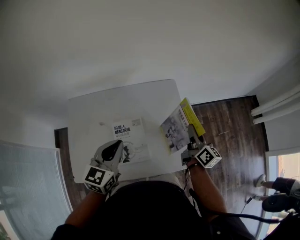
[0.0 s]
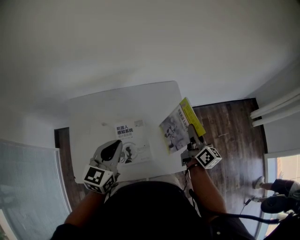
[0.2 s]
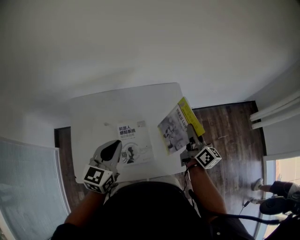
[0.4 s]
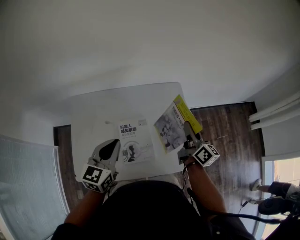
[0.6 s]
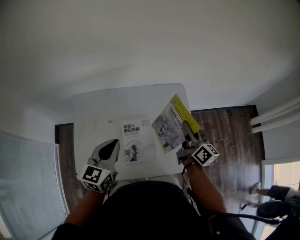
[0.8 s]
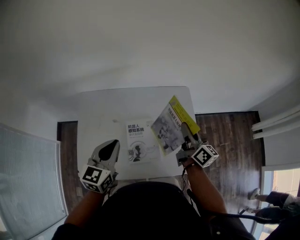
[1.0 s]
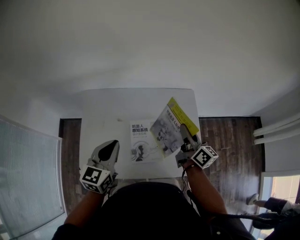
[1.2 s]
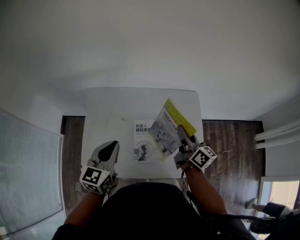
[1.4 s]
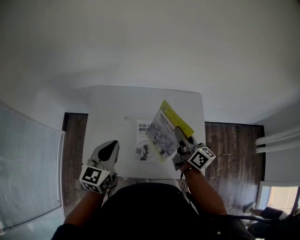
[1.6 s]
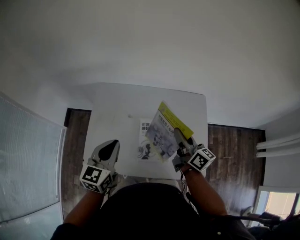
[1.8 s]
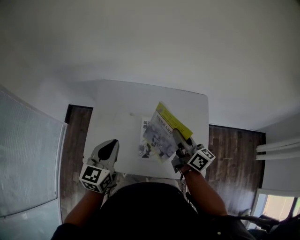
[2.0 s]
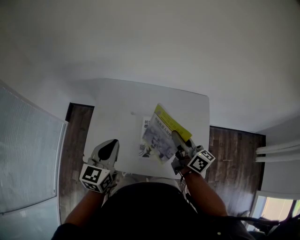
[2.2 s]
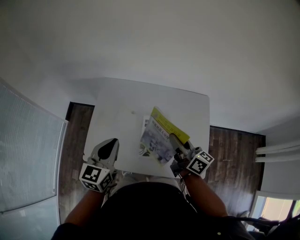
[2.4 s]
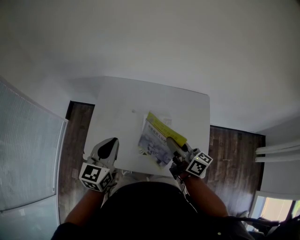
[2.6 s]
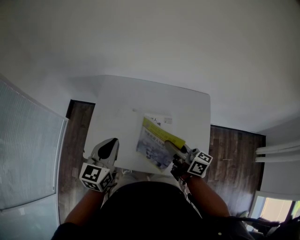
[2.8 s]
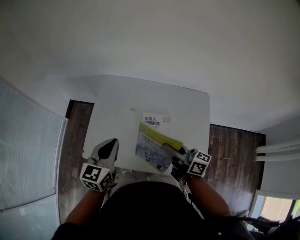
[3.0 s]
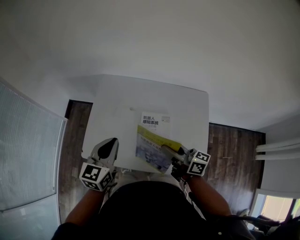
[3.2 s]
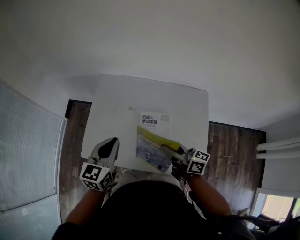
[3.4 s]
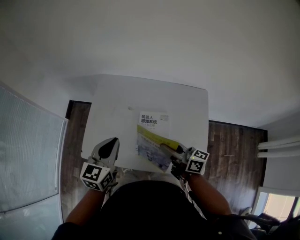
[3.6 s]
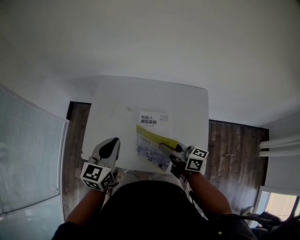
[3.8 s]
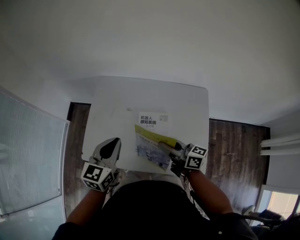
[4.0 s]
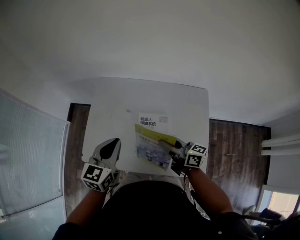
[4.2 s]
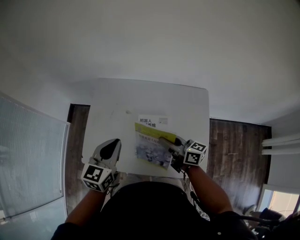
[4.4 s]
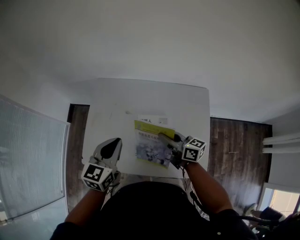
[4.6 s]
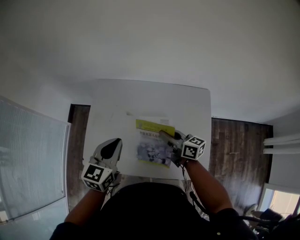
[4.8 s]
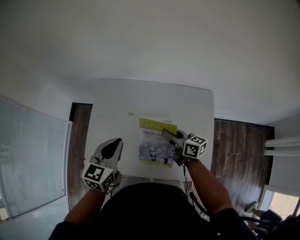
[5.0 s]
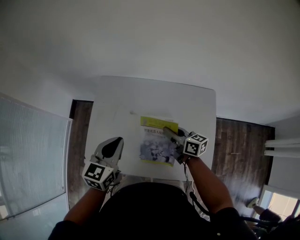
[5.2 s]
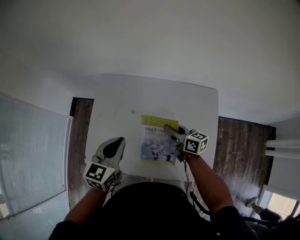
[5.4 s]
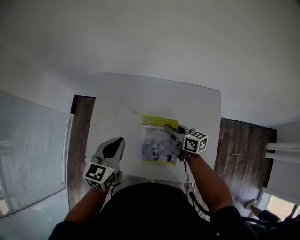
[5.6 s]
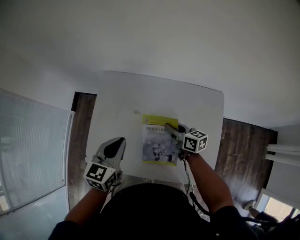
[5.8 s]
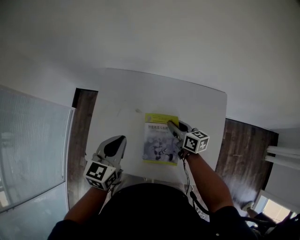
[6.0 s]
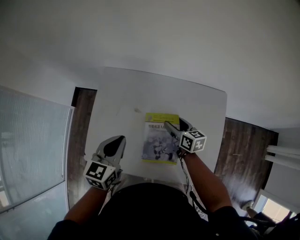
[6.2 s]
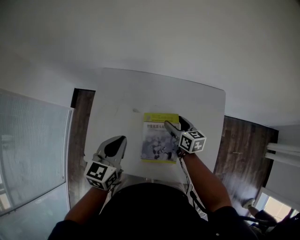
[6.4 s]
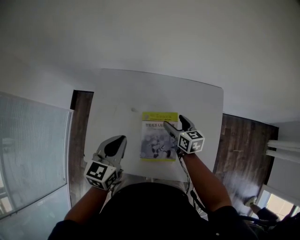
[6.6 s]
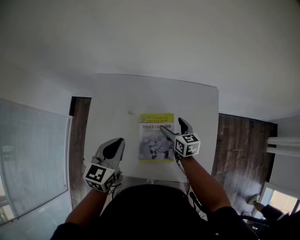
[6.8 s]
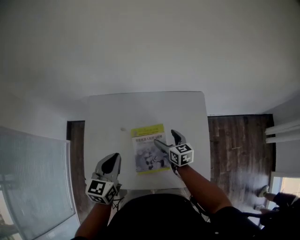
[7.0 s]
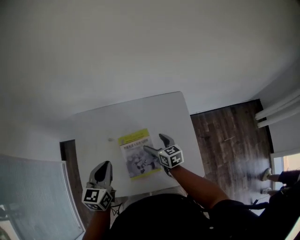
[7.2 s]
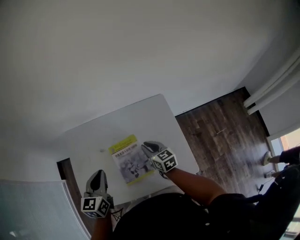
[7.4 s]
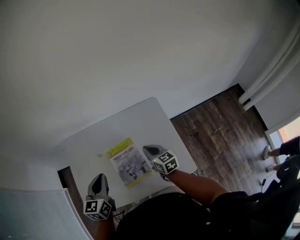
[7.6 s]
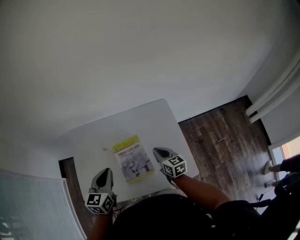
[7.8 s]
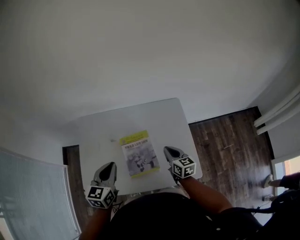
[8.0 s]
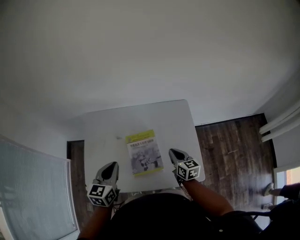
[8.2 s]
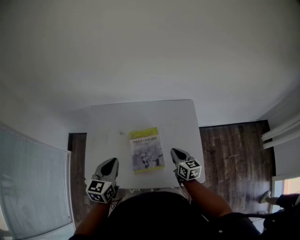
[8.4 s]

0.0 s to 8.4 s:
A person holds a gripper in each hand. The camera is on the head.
0.0 to 1.4 s: Both grippers travel together to the left, some 15 cm. The right gripper changes its angle by roughly 20 degrees.
1.4 to 2.8 s: The left gripper moves roughly 5 cm; the right gripper moves to the left and backward, approximately 15 cm, and swivels about 30 degrees.
2.8 to 4.2 s: The grippers stay close to where they were, moving slightly.
4.2 to 5.6 s: The right gripper heads forward and downward, covering about 15 cm. Meanwhile the left gripper ends up about 5 cm from where it was.
5.6 to 7.0 s: The right gripper shifts by some 5 cm, turns by roughly 30 degrees, and opens up.
7.0 to 8.4 s: The right gripper moves backward and to the right, about 10 cm, and closes.

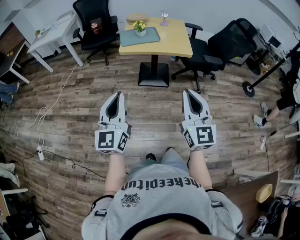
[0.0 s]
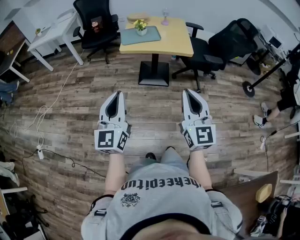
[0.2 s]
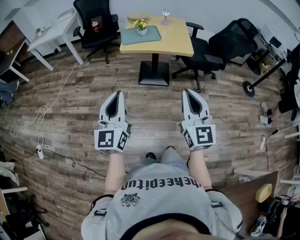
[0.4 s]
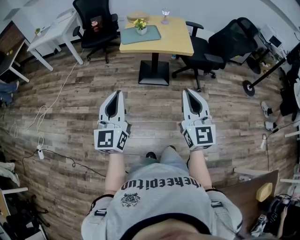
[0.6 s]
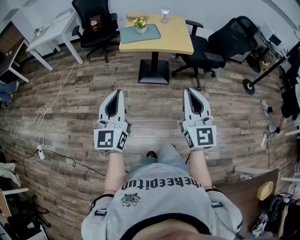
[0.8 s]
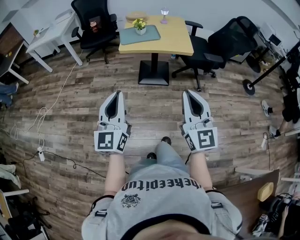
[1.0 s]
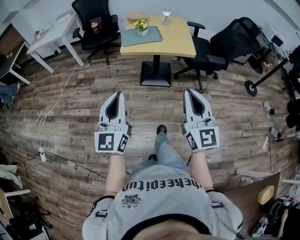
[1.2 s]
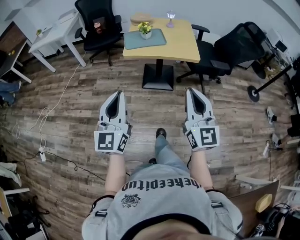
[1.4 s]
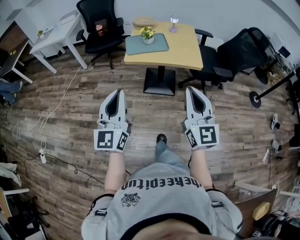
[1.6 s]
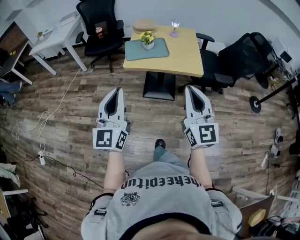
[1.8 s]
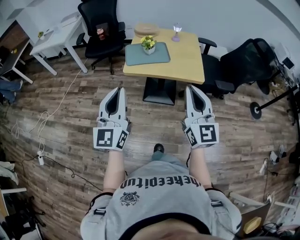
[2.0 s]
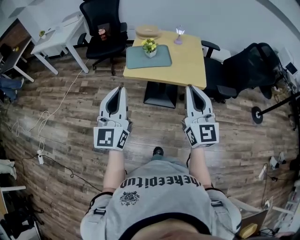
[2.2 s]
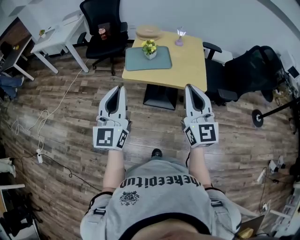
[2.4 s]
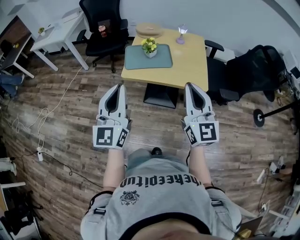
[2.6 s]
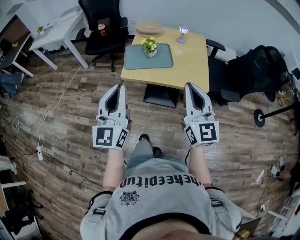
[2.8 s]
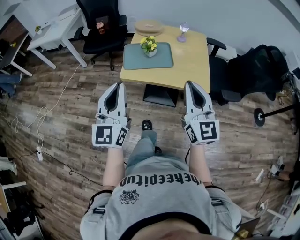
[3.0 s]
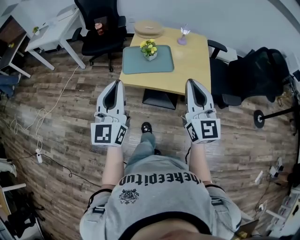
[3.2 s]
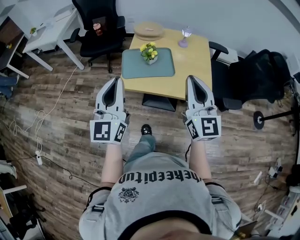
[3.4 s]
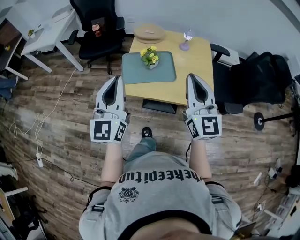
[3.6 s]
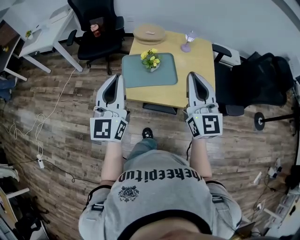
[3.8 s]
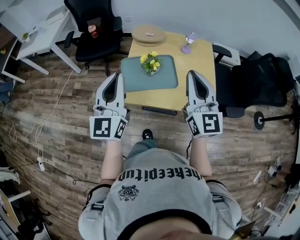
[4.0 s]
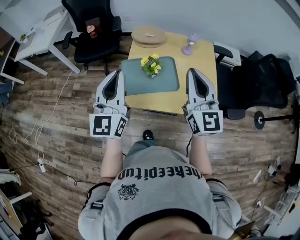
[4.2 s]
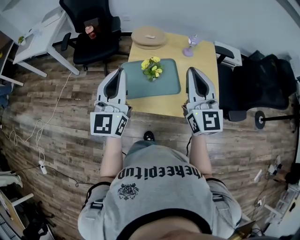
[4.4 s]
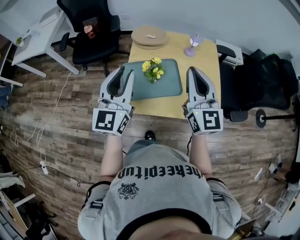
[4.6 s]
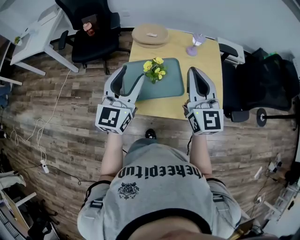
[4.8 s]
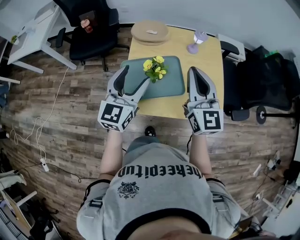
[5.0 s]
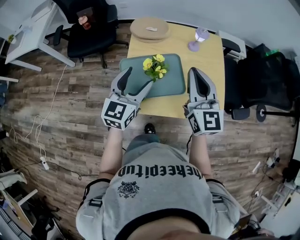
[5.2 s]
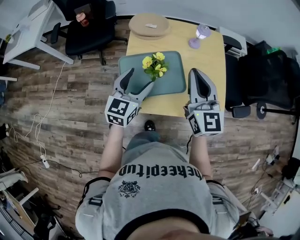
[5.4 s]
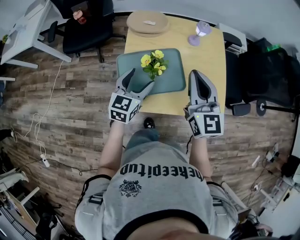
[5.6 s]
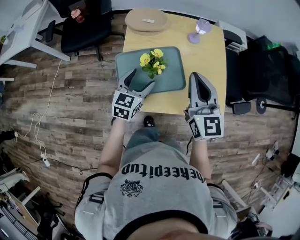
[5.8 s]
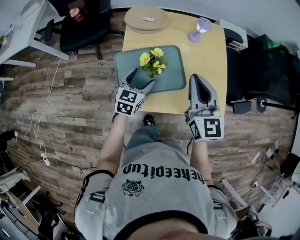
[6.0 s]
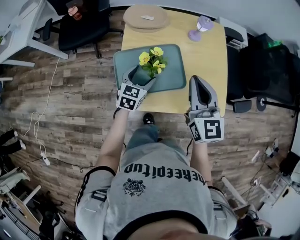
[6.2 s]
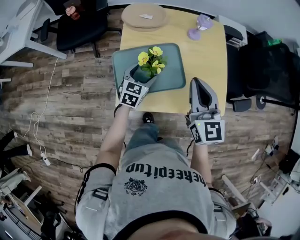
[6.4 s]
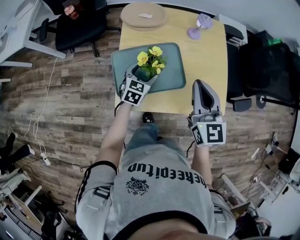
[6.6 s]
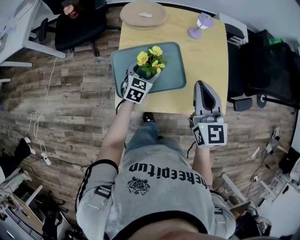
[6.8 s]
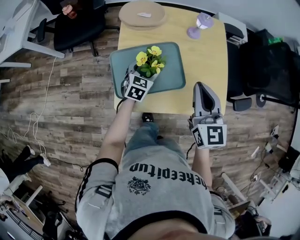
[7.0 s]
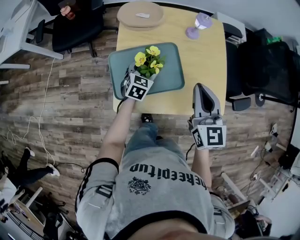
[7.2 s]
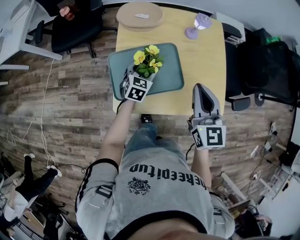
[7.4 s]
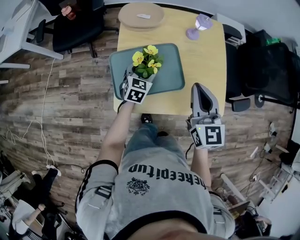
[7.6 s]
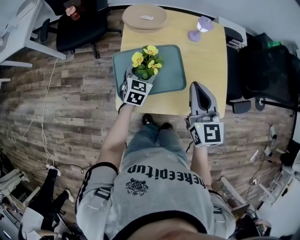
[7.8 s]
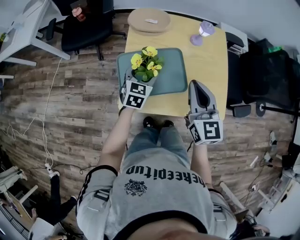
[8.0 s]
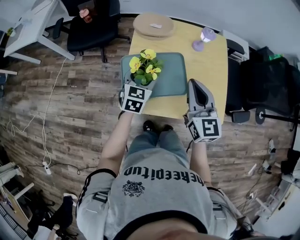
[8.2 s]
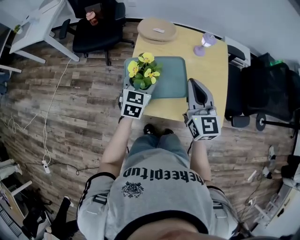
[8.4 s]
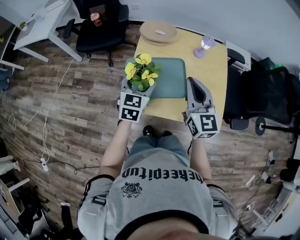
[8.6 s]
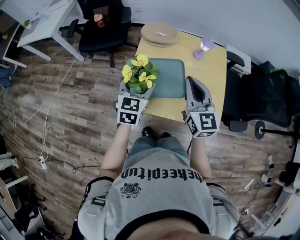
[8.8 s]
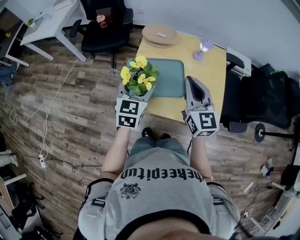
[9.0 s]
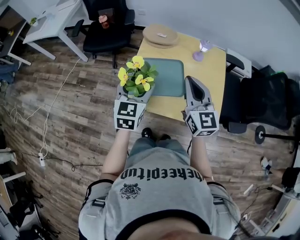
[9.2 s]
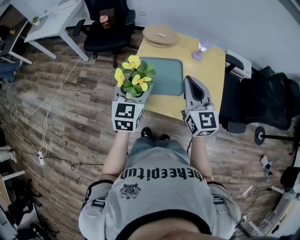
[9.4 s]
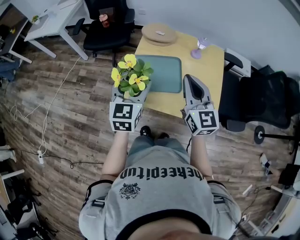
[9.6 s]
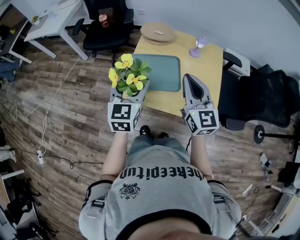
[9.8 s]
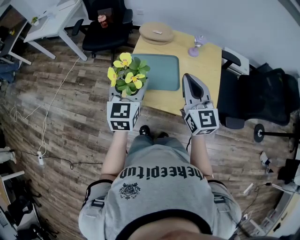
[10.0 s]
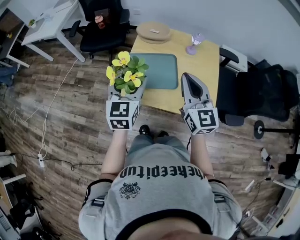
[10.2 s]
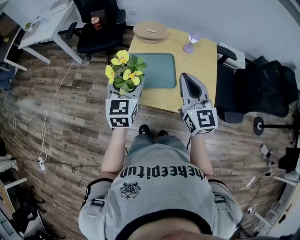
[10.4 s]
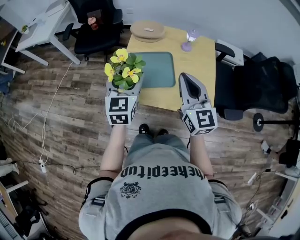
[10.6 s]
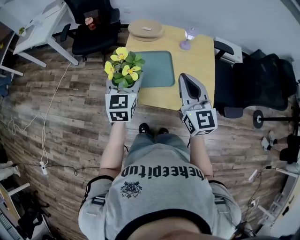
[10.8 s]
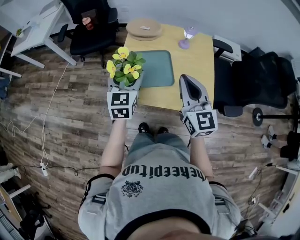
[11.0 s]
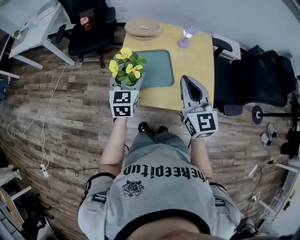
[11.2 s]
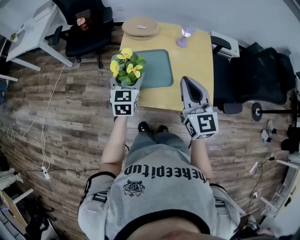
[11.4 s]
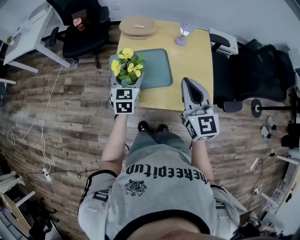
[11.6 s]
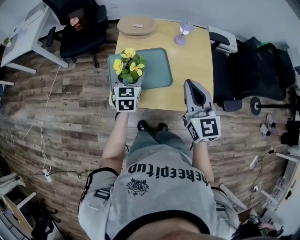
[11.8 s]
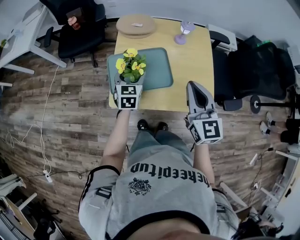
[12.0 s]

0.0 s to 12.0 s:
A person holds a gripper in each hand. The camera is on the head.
0.0 to 1.6 s: The two grippers go some 15 cm forward.
1.6 to 3.0 s: The two grippers go roughly 25 cm forward.
3.0 to 4.4 s: Both grippers travel together forward, about 30 cm.
4.4 to 6.0 s: The left gripper heads downward, covering approximately 30 cm, points its fingers some 40 degrees further downward, and opens. Meanwhile the right gripper is displaced downward and forward by roughly 15 cm.
6.0 to 7.6 s: The left gripper heads forward and downward, covering approximately 10 cm.
7.6 to 9.0 s: The left gripper moves upward and backward, approximately 25 cm, and turns by some 20 degrees; the right gripper shifts some 5 cm upward.
9.0 to 10.4 s: The right gripper is displaced backward by roughly 5 cm. The left gripper heads upward and backward, covering roughly 5 cm.
10.4 to 12.0 s: The right gripper changes place by roughly 5 cm. The left gripper shifts some 20 cm downward and forward.

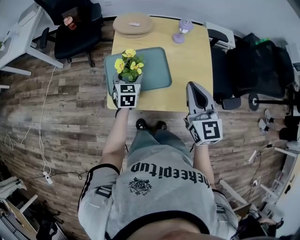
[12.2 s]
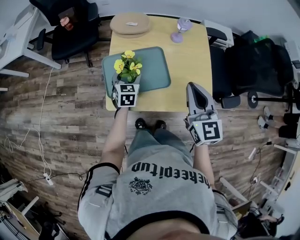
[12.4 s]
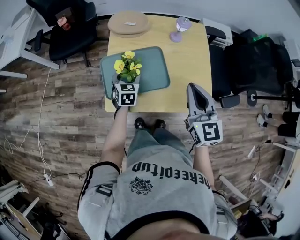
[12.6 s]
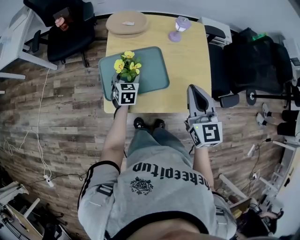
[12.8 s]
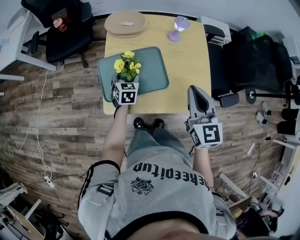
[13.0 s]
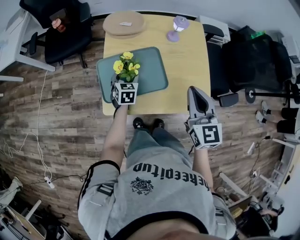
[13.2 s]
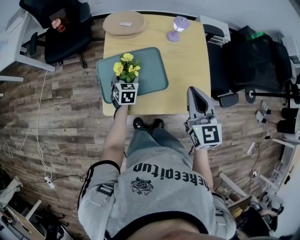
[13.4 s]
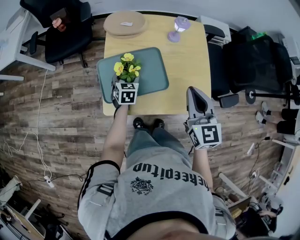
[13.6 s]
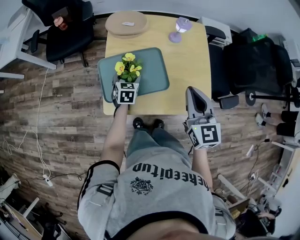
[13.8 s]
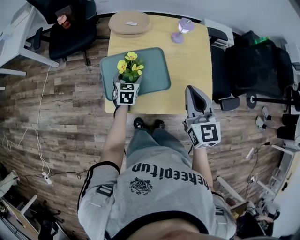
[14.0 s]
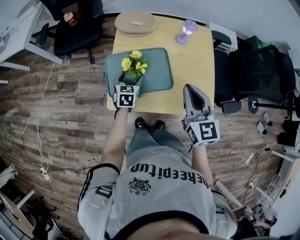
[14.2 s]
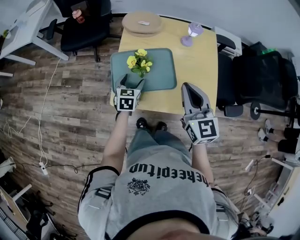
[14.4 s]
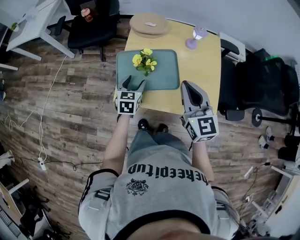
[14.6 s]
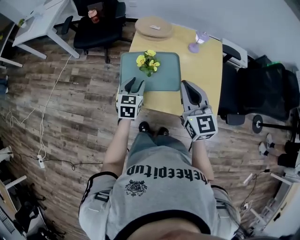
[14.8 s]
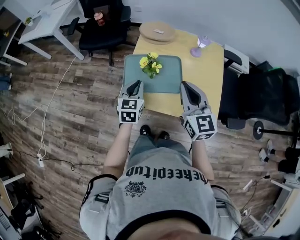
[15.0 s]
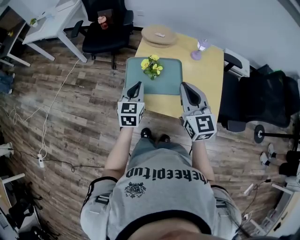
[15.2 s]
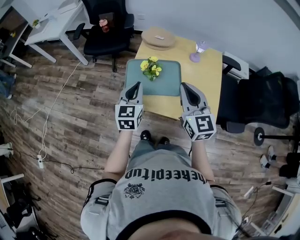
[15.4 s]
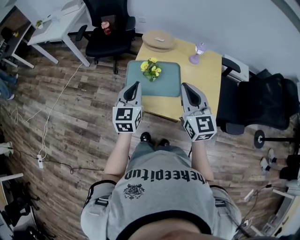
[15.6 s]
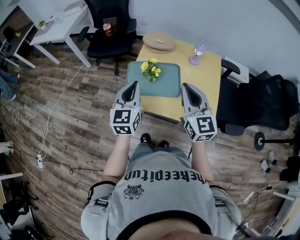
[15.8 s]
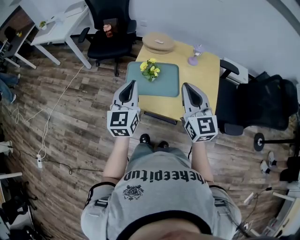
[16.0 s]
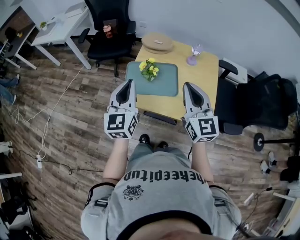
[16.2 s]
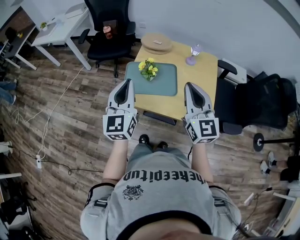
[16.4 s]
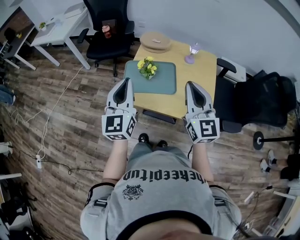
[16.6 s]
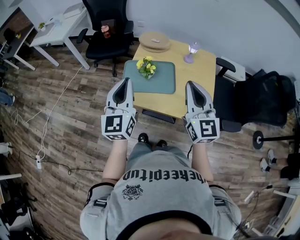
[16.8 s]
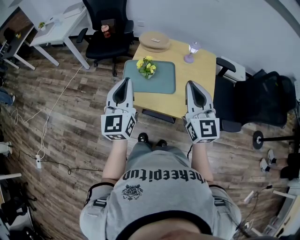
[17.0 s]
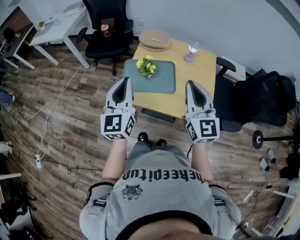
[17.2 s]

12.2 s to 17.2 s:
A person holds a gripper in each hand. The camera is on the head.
12.2 to 13.8 s: The left gripper is displaced downward by some 10 cm.
13.8 to 15.6 s: The left gripper is displaced upward and backward by roughly 30 cm, rotates approximately 30 degrees, and closes its fingers. The right gripper is displaced upward and to the left by roughly 10 cm, and rotates roughly 20 degrees.
15.6 to 17.2 s: The left gripper travels upward and backward by some 10 cm. Meanwhile the right gripper is displaced backward and upward by roughly 10 cm.
